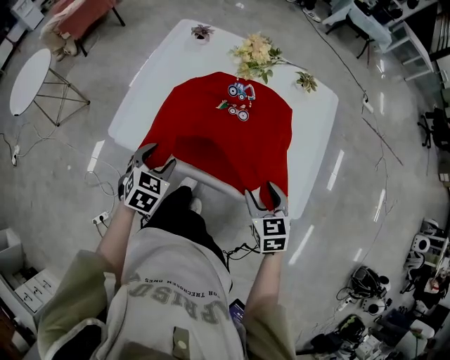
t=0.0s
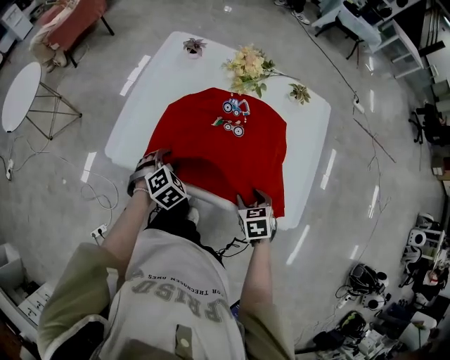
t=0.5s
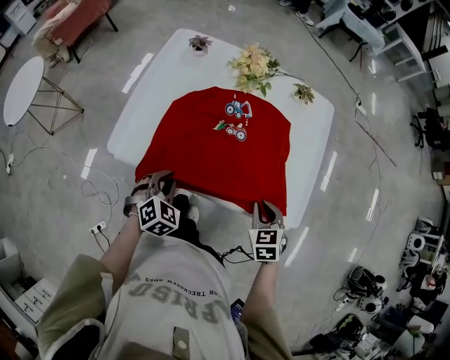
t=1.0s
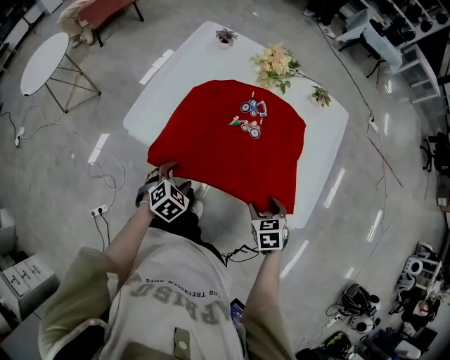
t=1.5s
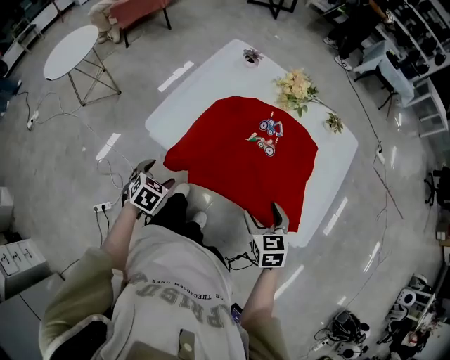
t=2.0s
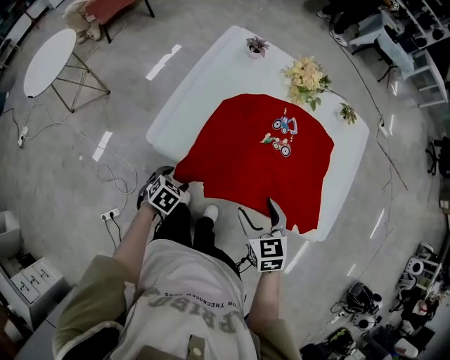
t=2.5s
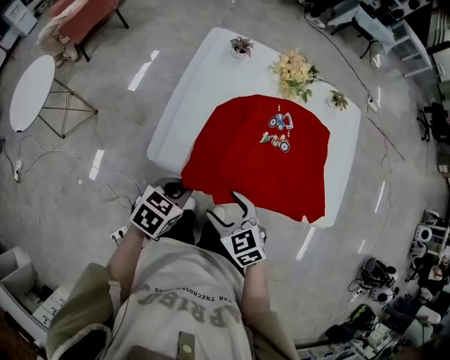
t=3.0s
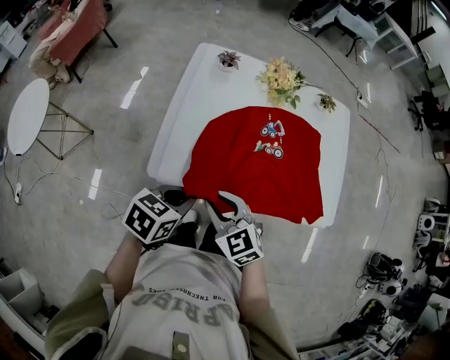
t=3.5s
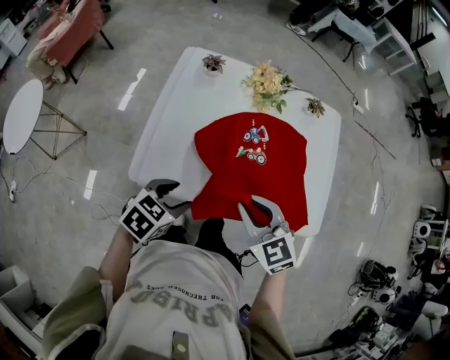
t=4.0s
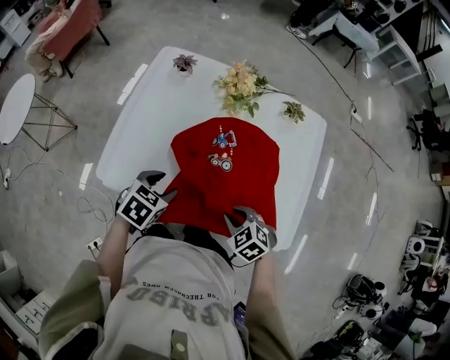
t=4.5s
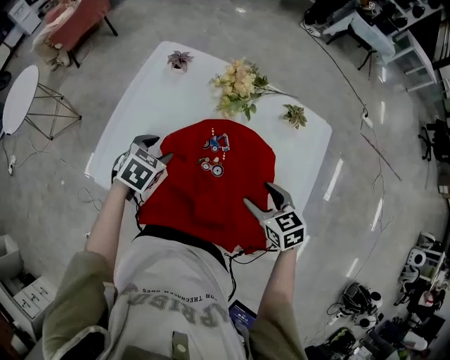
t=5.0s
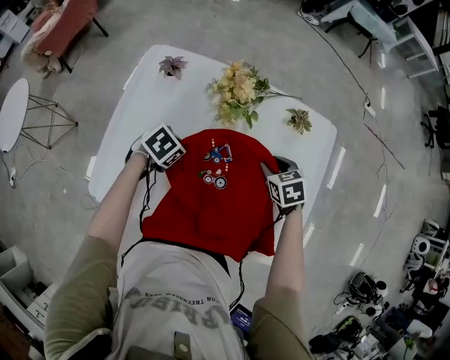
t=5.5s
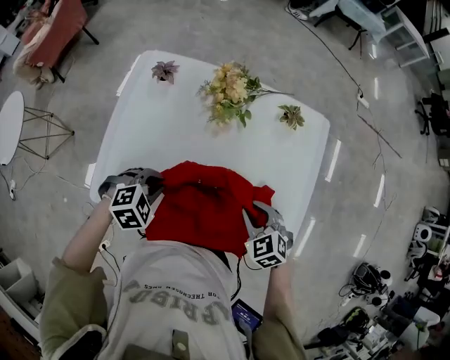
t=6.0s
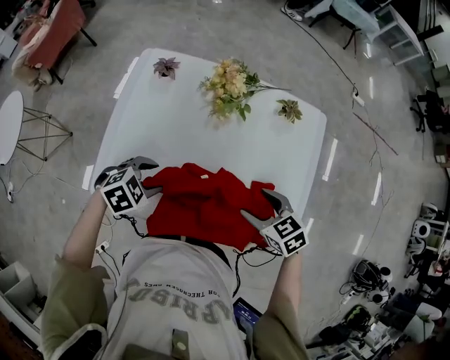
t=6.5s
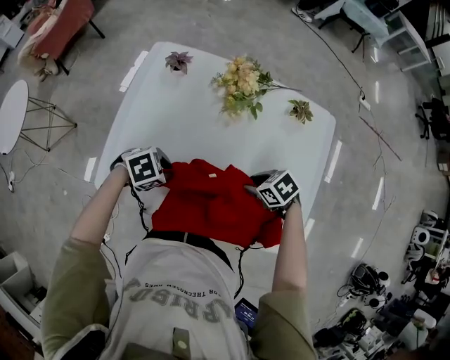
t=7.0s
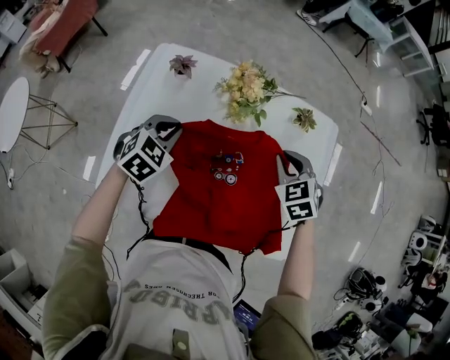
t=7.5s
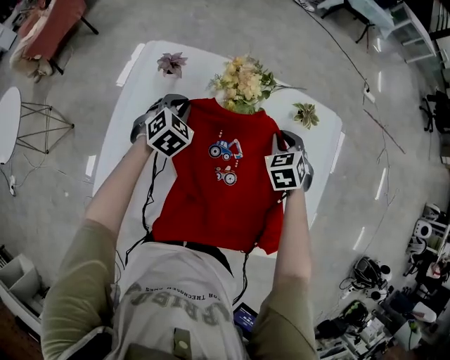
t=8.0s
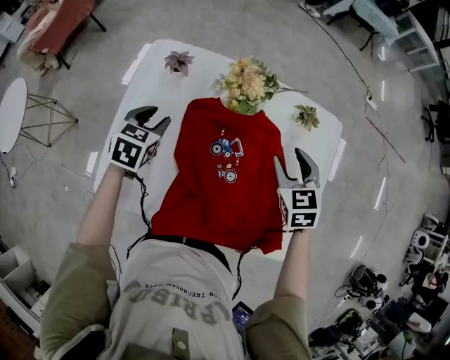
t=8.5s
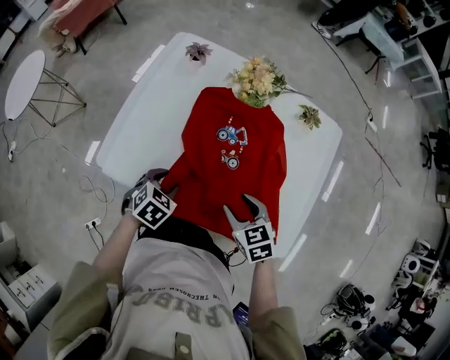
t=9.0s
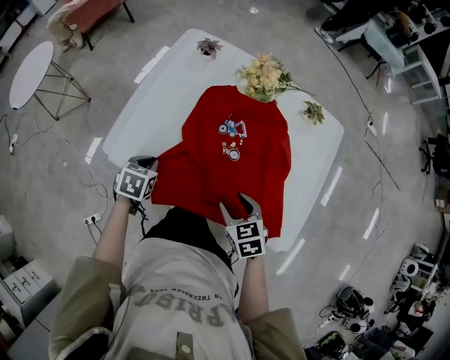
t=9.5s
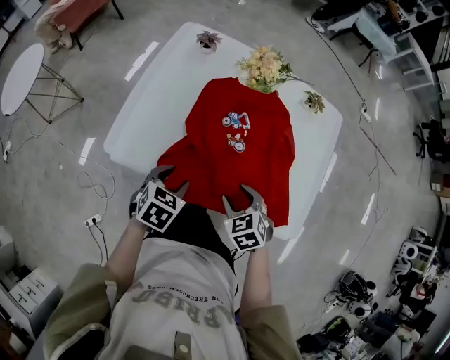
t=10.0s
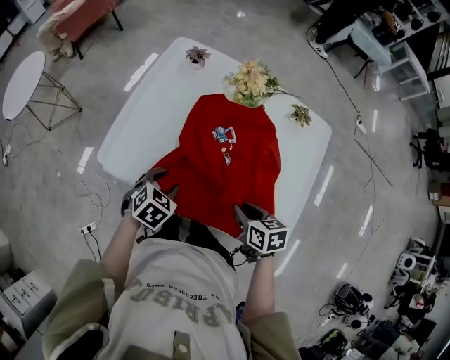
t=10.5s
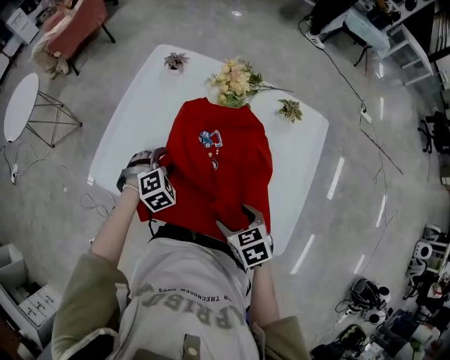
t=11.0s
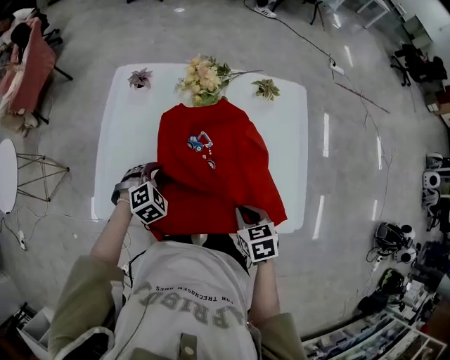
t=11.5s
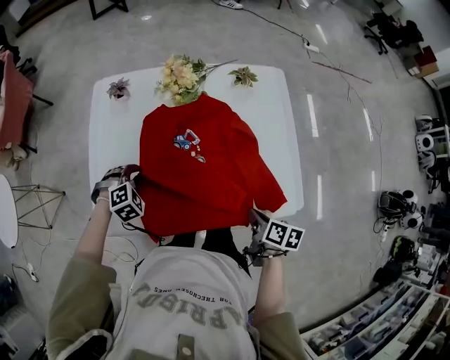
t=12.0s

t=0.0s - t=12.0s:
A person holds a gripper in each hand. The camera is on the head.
t=0.0s - t=2.0s: The right gripper goes up and down, some 10 cm each way, reversing 3 times, and closes and opens again, while the left gripper heads to the left, backward and downward, covering approximately 15 cm, and closes, then reopens.
t=2.0s - t=4.0s: The right gripper closes, while the left gripper goes some 10 cm upward, rotates some 40 degrees, and closes, then reopens.
t=4.0s - t=6.0s: The right gripper swings up and down, roughly 20 cm each way, with 3 reversals, changes its angle by approximately 20 degrees, and opens, then closes once more; the left gripper turns by roughly 40 degrees, and closes up.
t=6.0s - t=8.0s: The left gripper moves up and down over approximately 10 cm, changing direction 2 times, changes its angle by approximately 30 degrees, and opens, then closes again. The right gripper swings up and down, approximately 10 cm each way, with 2 reversals, swivels about 20 degrees, and opens, then closes once more.
t=8.0s - t=10.0s: The left gripper goes approximately 35 cm backward, swivels some 30 degrees, and opens. The right gripper travels backward and to the left by some 35 cm, turns by about 20 degrees, and opens up.
t=10.0s - t=12.0s: The right gripper ends up roughly 15 cm from where it was, rolls clockwise, seen from behind, by approximately 90 degrees, and closes, while the left gripper shifts by approximately 15 cm, and rotates around the line of its fingers by about 70 degrees, clockwise from behind.

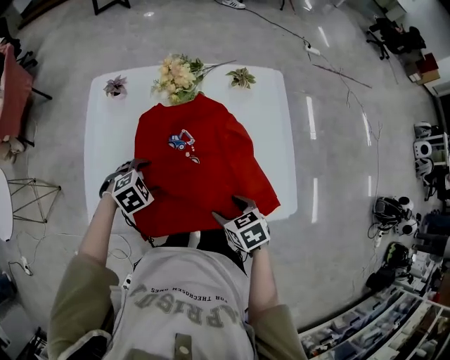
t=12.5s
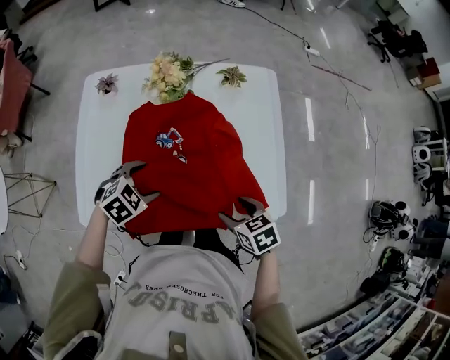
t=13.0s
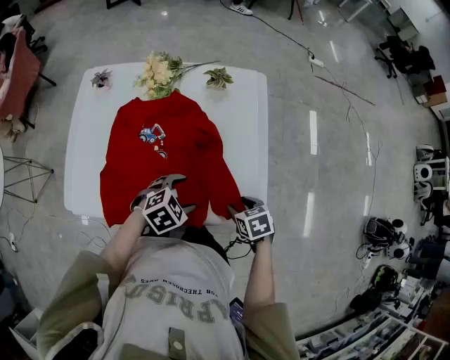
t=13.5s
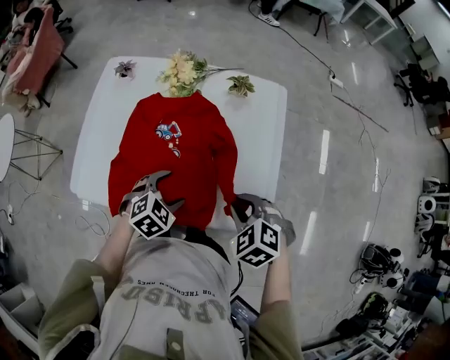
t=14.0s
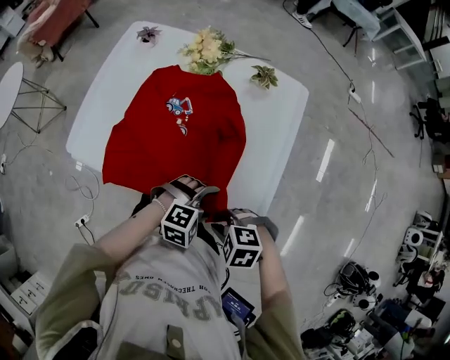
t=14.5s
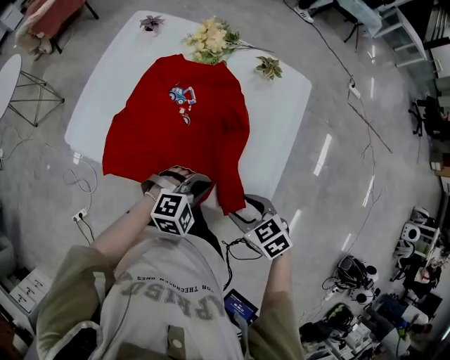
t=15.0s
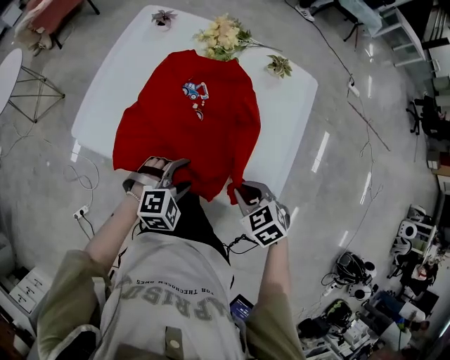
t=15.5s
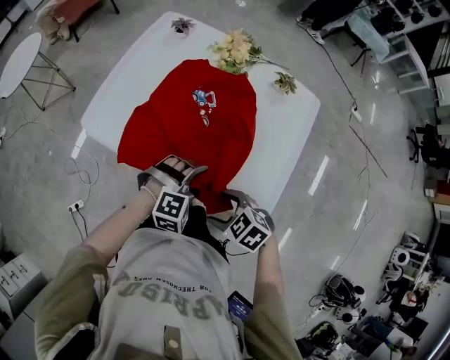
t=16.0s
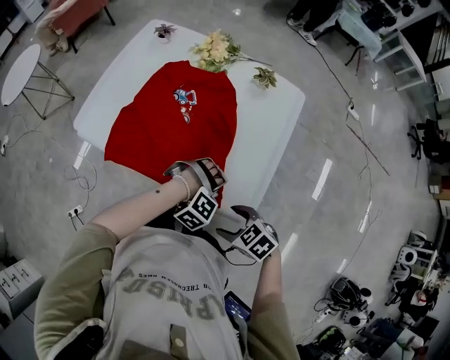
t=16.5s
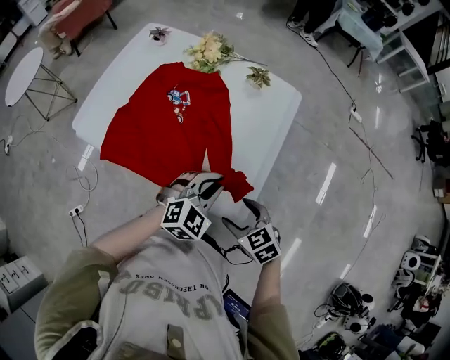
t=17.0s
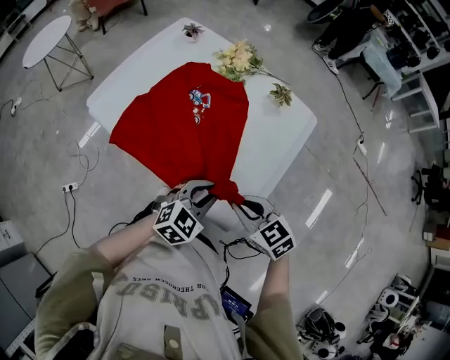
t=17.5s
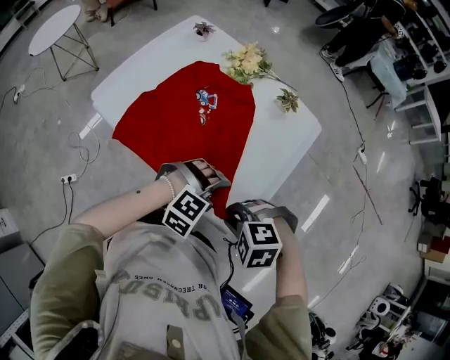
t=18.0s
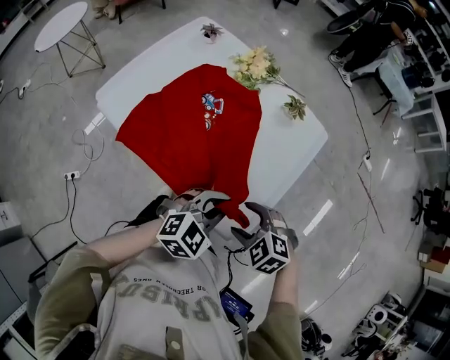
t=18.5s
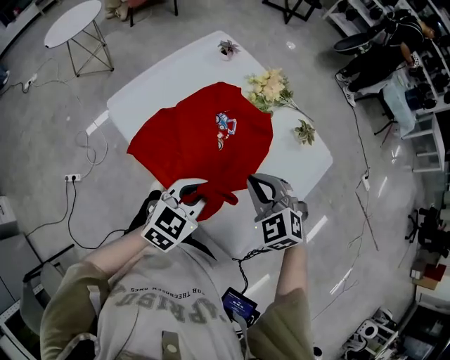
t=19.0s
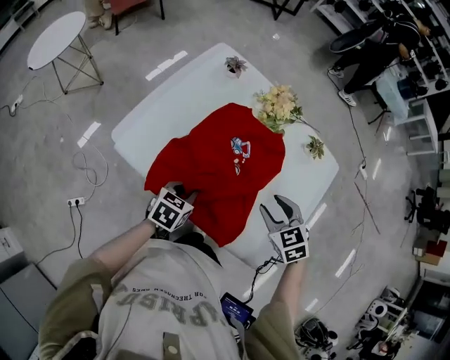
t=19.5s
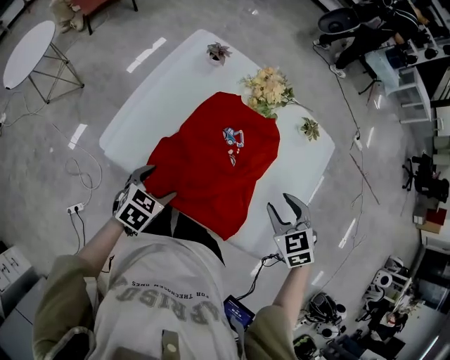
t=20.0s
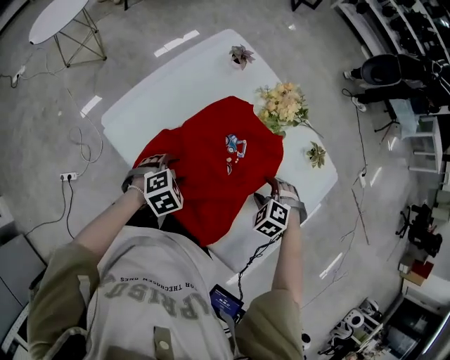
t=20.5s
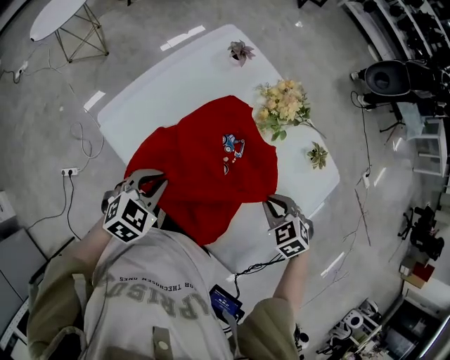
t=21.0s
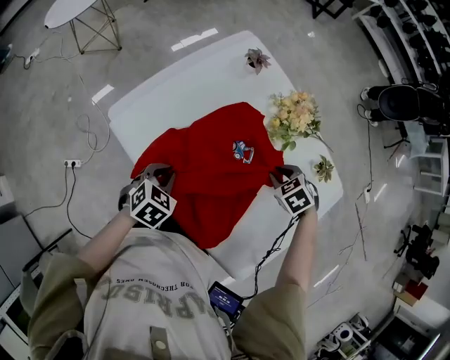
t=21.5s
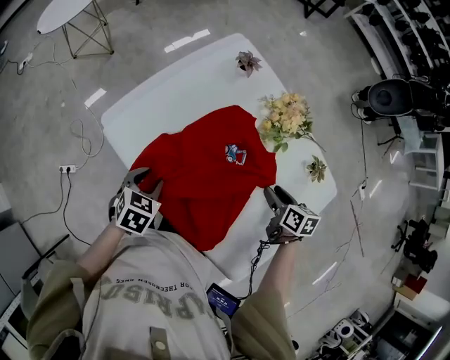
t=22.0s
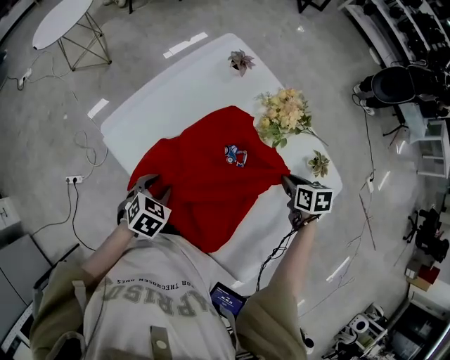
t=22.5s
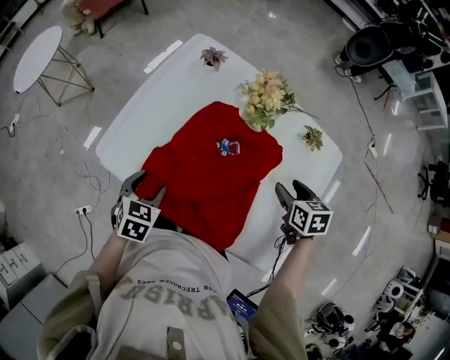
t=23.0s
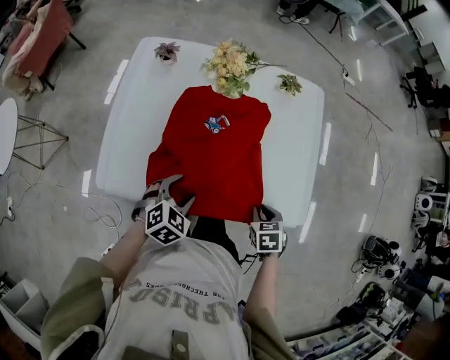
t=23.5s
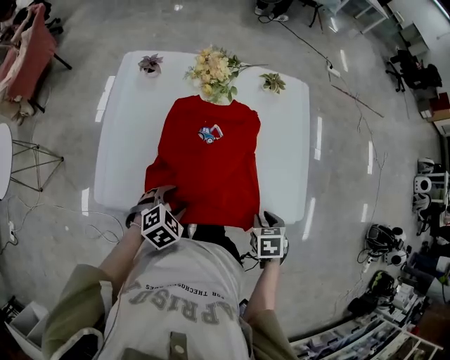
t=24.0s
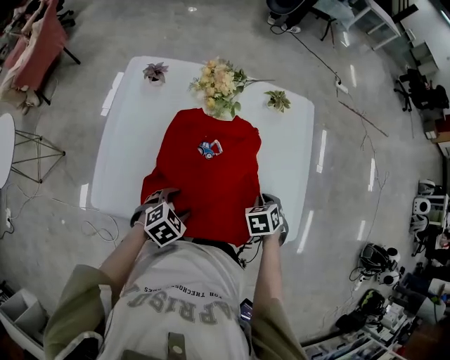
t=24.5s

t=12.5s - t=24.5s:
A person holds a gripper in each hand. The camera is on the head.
t=12.5s - t=14.5s: The left gripper changes place by roughly 35 cm, and rotates roughly 20 degrees. The right gripper swings up and down, approximately 15 cm each way, with 2 reversals, twists about 70 degrees counterclockwise, seen from behind, and closes.
t=14.5s - t=16.5s: The right gripper ends up some 10 cm from where it was, turns by about 30 degrees, and opens. The left gripper turns by some 40 degrees, and closes, then opens again.
t=16.5s - t=18.5s: The right gripper shifts by some 10 cm, swivels about 40 degrees, and closes, then opens again; the left gripper shifts approximately 15 cm upward, rolls counterclockwise, seen from behind, by some 70 degrees, and closes its fingers.
t=18.5s - t=20.5s: The left gripper shifts about 35 cm to the left, forward and downward, points its fingers about 30 degrees further downward, and opens up, while the right gripper goes some 25 cm forward and downward, changes its angle by roughly 30 degrees, and closes, then opens again.
t=20.5s - t=22.5s: The right gripper moves about 10 cm, rolls clockwise, seen from behind, by some 70 degrees, and closes up. The left gripper travels upward and back again, approximately 10 cm each way, and swivels roughly 30 degrees.
t=22.5s - t=24.5s: The left gripper shifts by about 5 cm, and rolls clockwise, seen from behind, by approximately 50 degrees; the right gripper changes its angle by about 40 degrees, and opens, then closes once more.

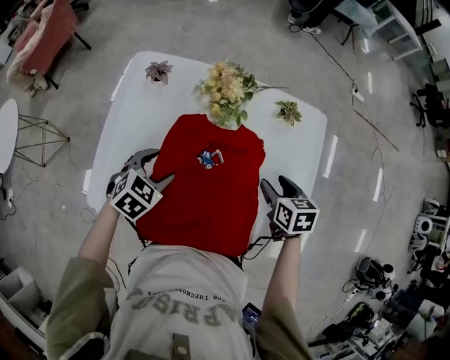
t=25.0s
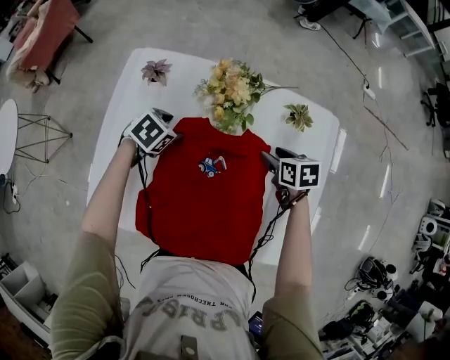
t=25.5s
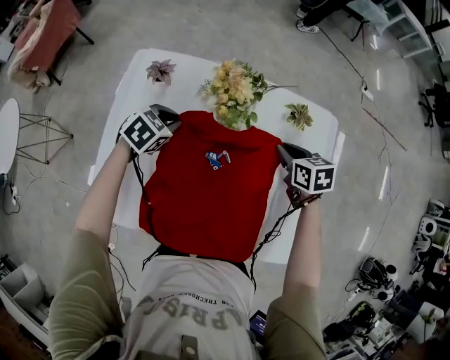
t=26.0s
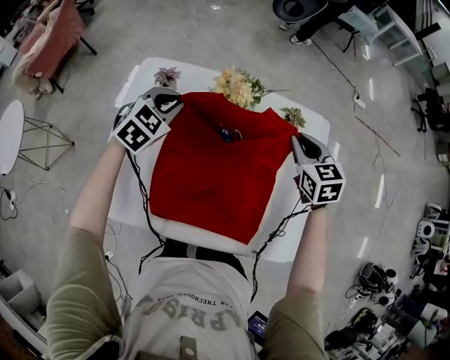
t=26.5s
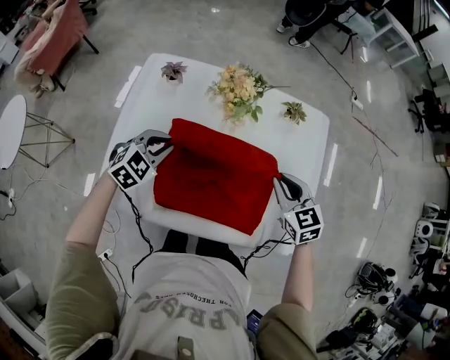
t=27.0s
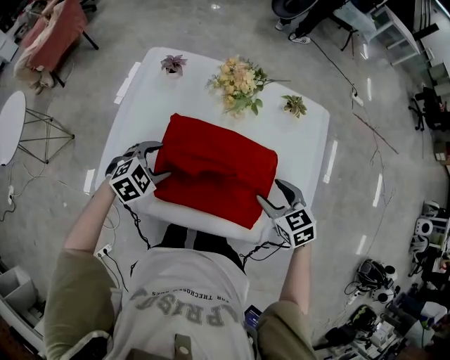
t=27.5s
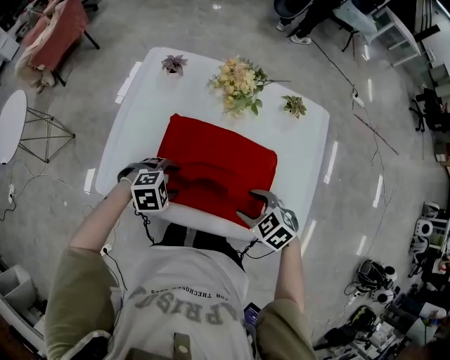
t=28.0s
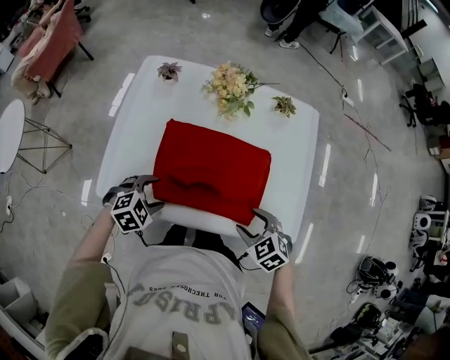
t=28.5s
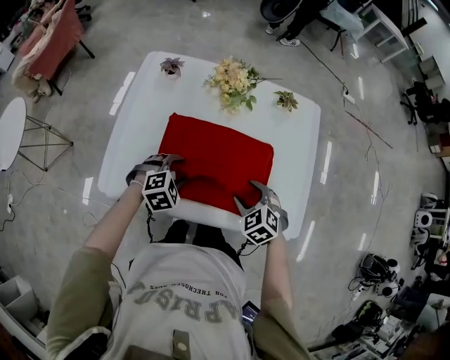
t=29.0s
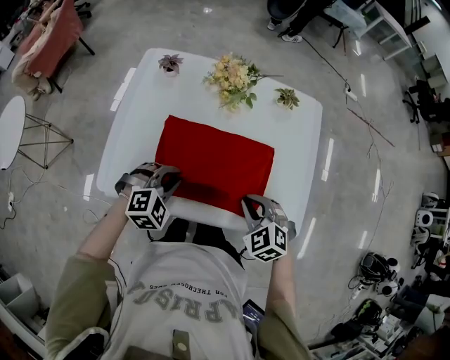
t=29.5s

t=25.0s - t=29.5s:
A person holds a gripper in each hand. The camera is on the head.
t=25.0s - t=27.0s: The right gripper swings up and down, roughly 15 cm each way, with 2 reversals, turns by about 30 degrees, and closes. Meanwhile the left gripper reaches roughly 15 cm forward, then returns, and closes.
t=27.0s - t=29.5s: The left gripper shifts by about 15 cm, rotates roughly 20 degrees, and opens and closes again; the right gripper ends up approximately 15 cm from where it was, rotates about 30 degrees, and opens and closes again.
